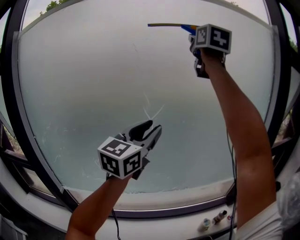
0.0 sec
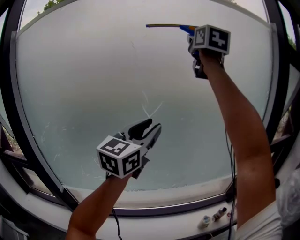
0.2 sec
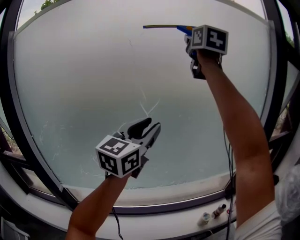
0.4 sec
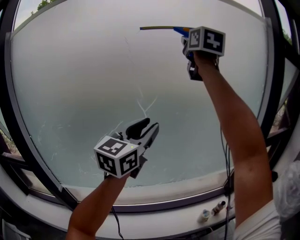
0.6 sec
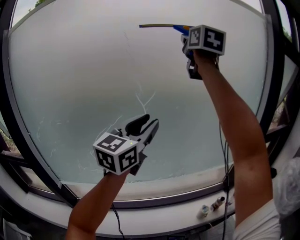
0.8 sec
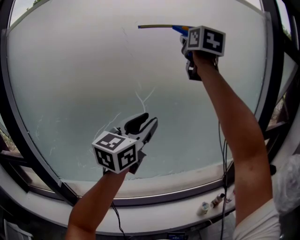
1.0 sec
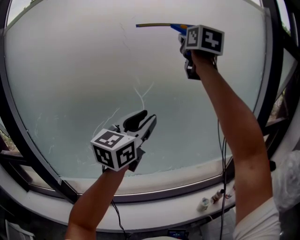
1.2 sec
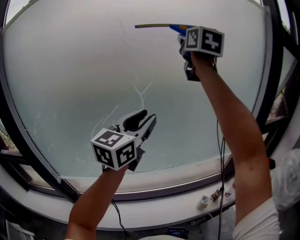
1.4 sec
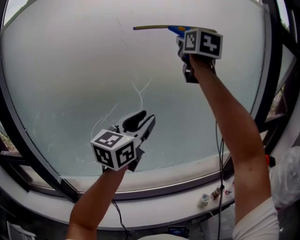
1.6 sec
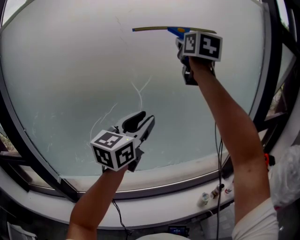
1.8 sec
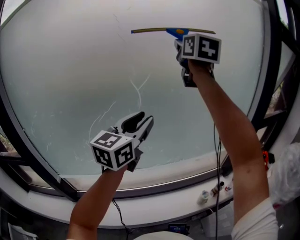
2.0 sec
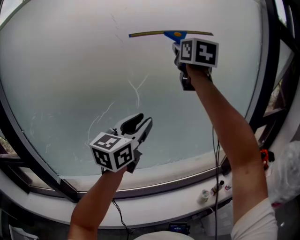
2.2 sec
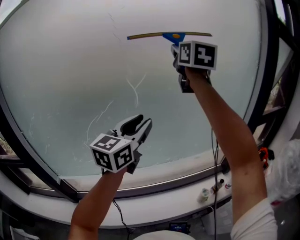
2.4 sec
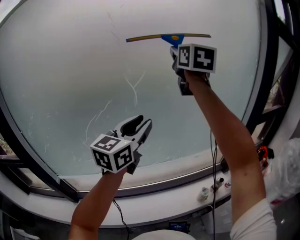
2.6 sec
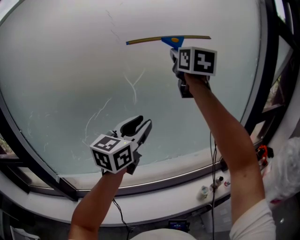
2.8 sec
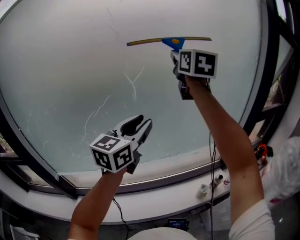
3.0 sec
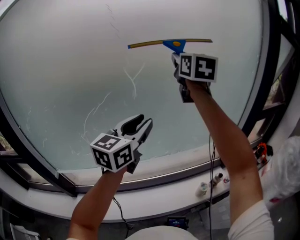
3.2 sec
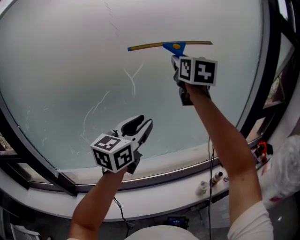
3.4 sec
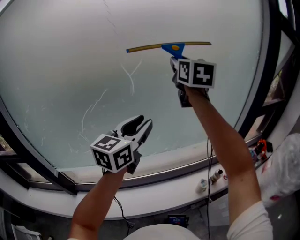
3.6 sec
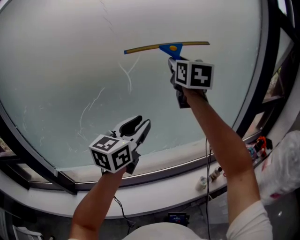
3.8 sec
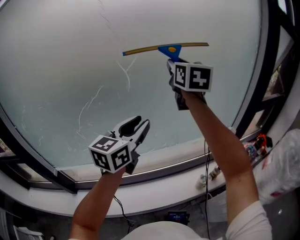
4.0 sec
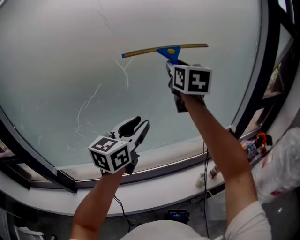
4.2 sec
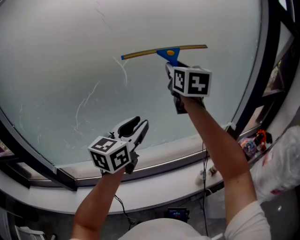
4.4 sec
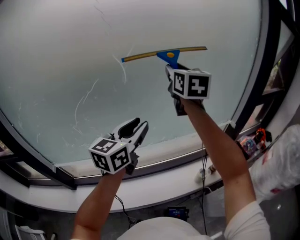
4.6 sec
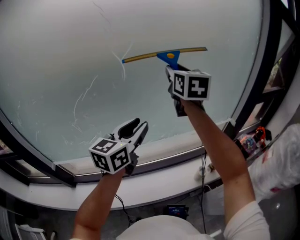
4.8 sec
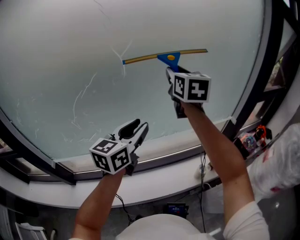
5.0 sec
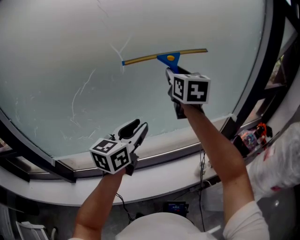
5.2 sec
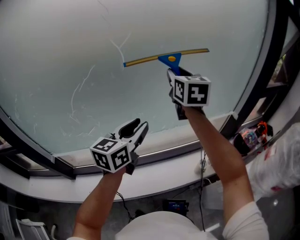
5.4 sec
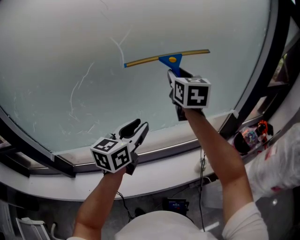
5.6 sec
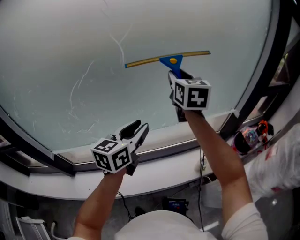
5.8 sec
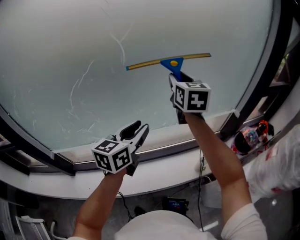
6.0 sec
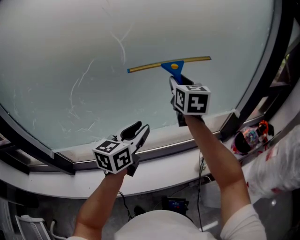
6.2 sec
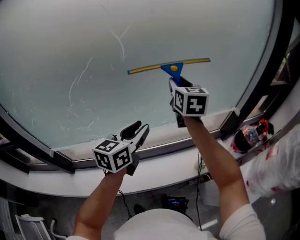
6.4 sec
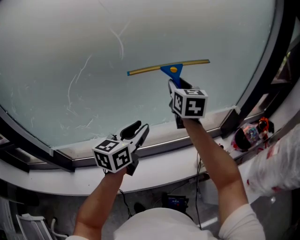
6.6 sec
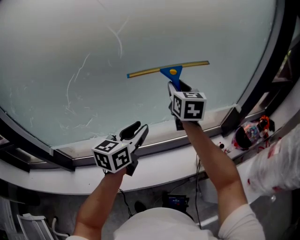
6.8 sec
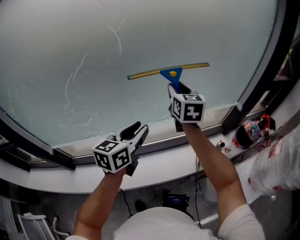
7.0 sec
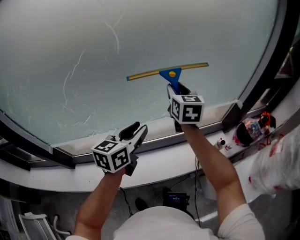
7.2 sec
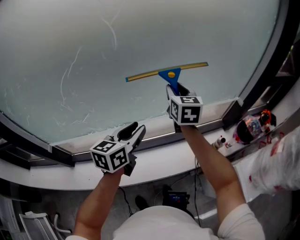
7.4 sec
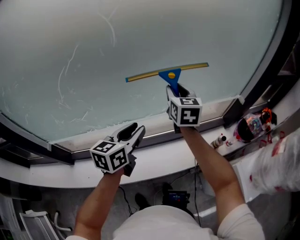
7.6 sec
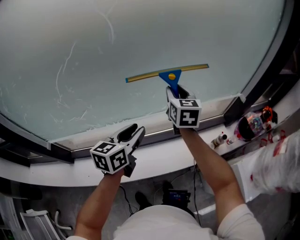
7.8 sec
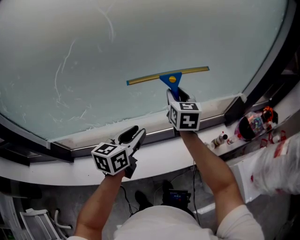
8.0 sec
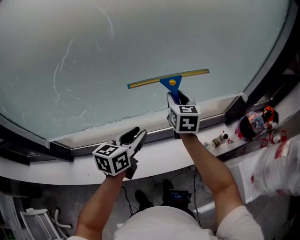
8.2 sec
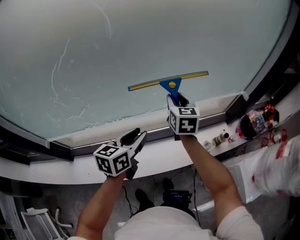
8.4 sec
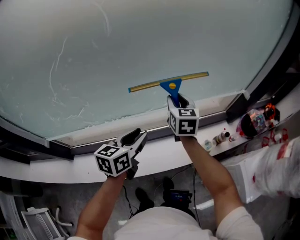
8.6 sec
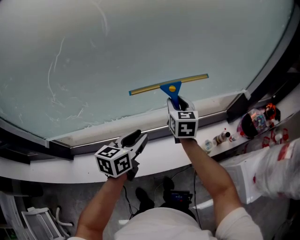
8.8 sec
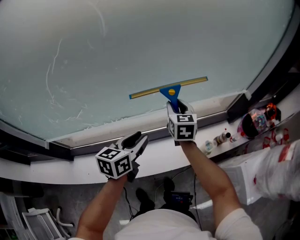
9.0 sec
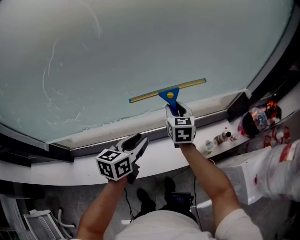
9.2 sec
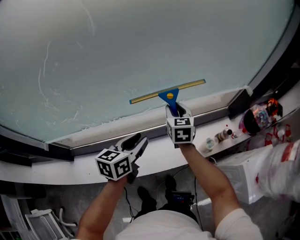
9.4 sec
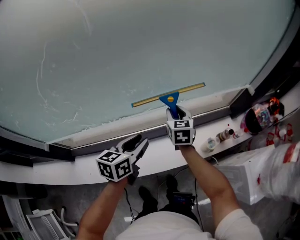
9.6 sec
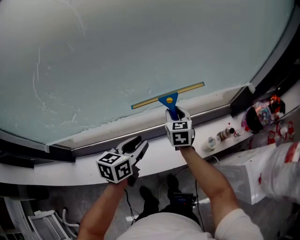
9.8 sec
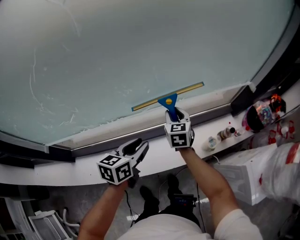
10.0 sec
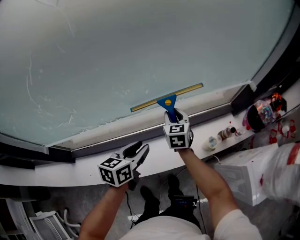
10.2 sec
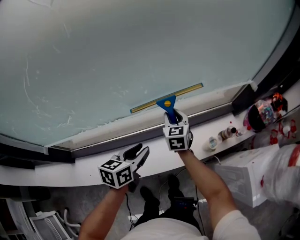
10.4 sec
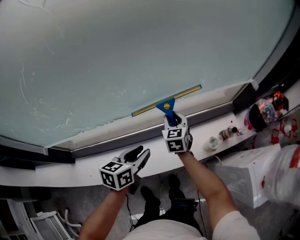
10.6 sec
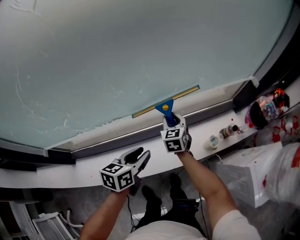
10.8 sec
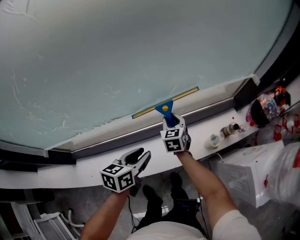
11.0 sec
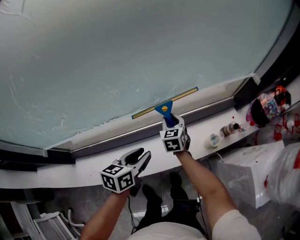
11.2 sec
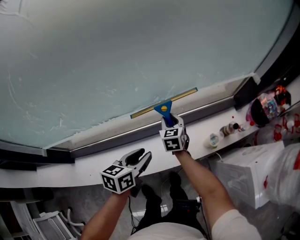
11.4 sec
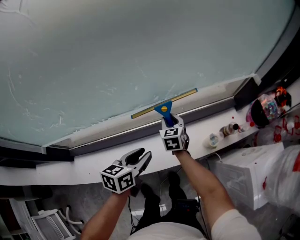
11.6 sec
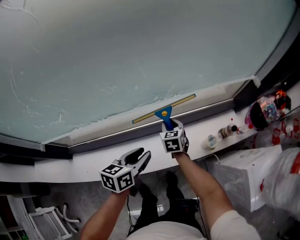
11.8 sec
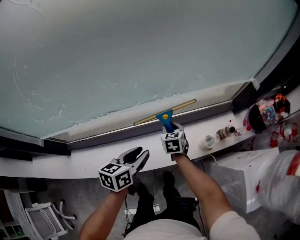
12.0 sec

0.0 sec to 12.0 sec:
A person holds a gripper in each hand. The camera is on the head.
0.0 sec to 1.6 sec: The left gripper moves downward, approximately 5 cm. The right gripper heads downward, covering approximately 15 cm.
1.6 sec to 3.0 sec: The left gripper moves downward, about 5 cm; the right gripper heads downward, covering approximately 10 cm.
3.0 sec to 4.4 sec: The right gripper is displaced downward by about 15 cm. Meanwhile the left gripper travels downward by some 5 cm.
4.4 sec to 6.0 sec: The grippers both shift downward by roughly 10 cm.
6.0 sec to 7.6 sec: The left gripper travels downward by some 10 cm. The right gripper goes approximately 15 cm downward.
7.6 sec to 9.0 sec: The left gripper travels downward by approximately 10 cm, while the right gripper is displaced downward by approximately 15 cm.
9.0 sec to 10.4 sec: The right gripper is displaced downward by about 10 cm. The left gripper is displaced downward by approximately 10 cm.
10.4 sec to 12.0 sec: The left gripper changes place by roughly 5 cm. The right gripper shifts roughly 10 cm downward.

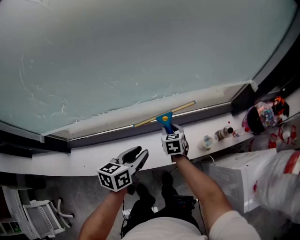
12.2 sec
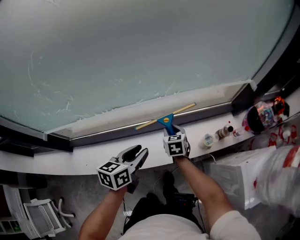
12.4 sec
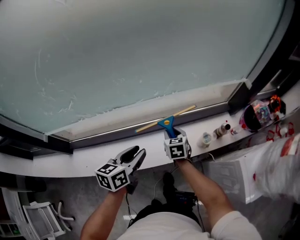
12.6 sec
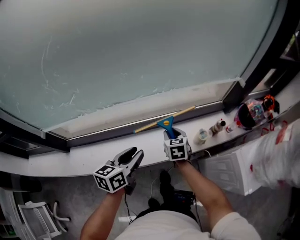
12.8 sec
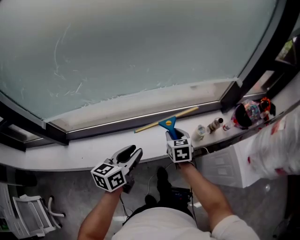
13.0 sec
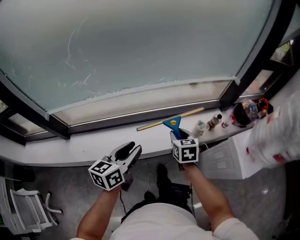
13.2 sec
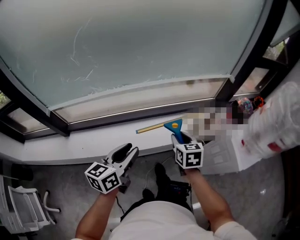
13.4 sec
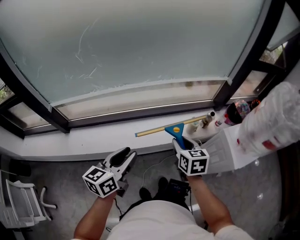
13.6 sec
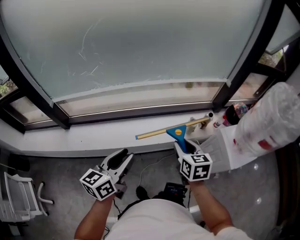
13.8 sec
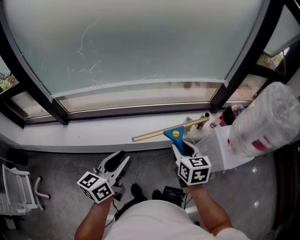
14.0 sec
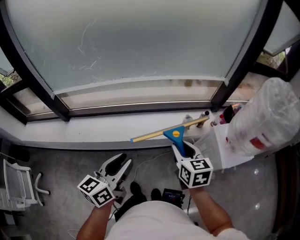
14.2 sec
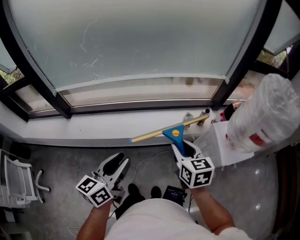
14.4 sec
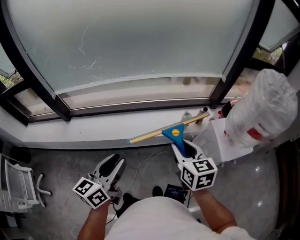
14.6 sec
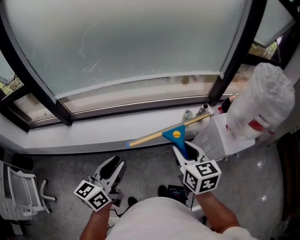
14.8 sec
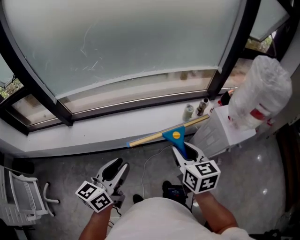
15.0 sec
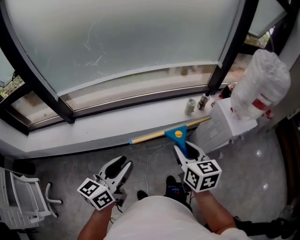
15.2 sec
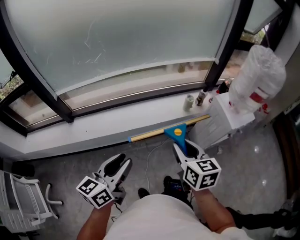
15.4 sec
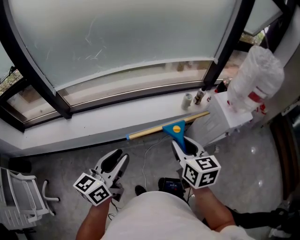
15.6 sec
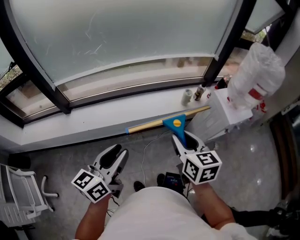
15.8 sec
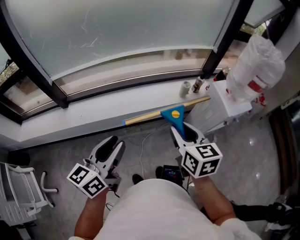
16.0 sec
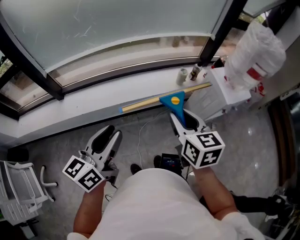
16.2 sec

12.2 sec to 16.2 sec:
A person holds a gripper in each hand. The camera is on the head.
12.2 sec to 13.6 sec: Both grippers travel together backward and upward, some 35 cm.
13.6 sec to 14.8 sec: The left gripper shifts about 15 cm backward, while the right gripper moves backward and upward, approximately 20 cm.
14.8 sec to 16.2 sec: The two grippers go roughly 10 cm backward and to the left.

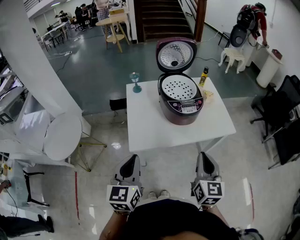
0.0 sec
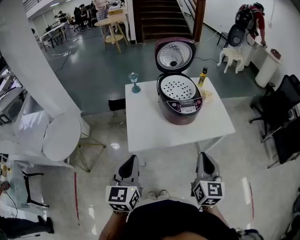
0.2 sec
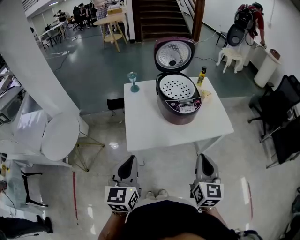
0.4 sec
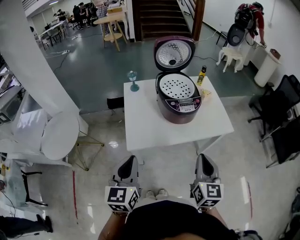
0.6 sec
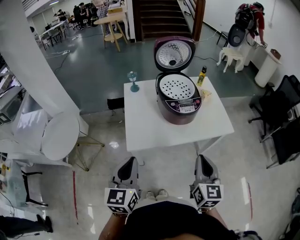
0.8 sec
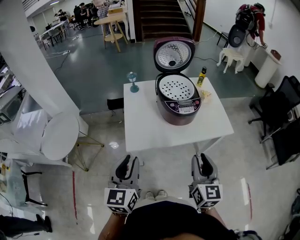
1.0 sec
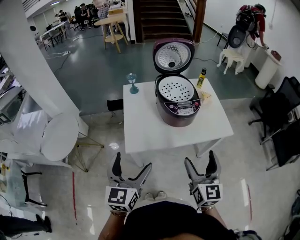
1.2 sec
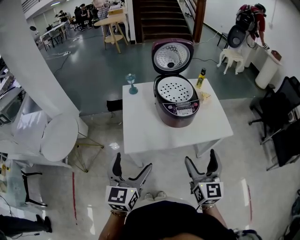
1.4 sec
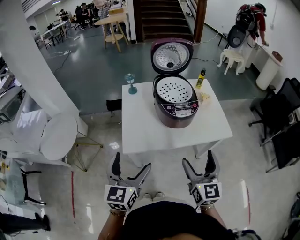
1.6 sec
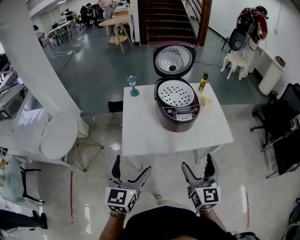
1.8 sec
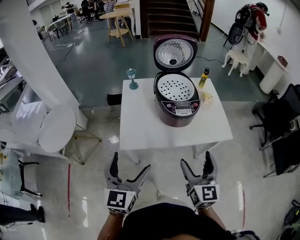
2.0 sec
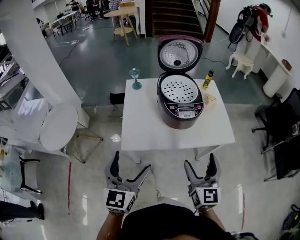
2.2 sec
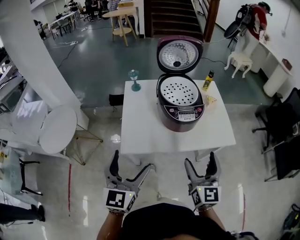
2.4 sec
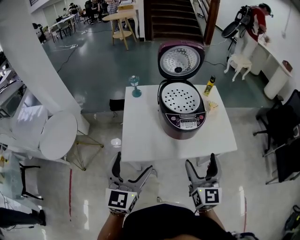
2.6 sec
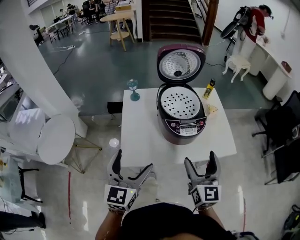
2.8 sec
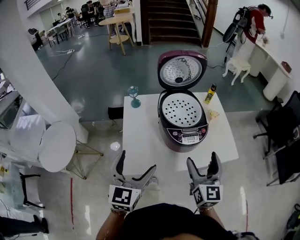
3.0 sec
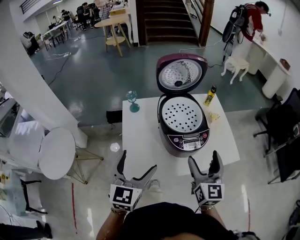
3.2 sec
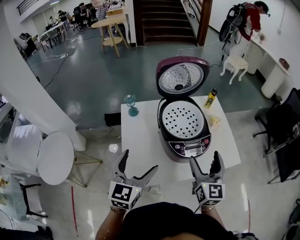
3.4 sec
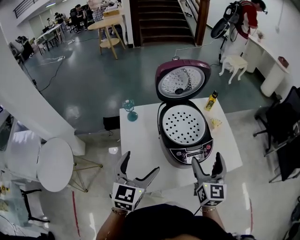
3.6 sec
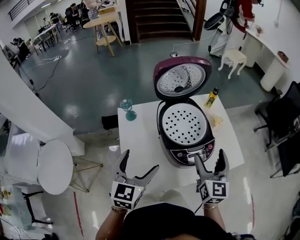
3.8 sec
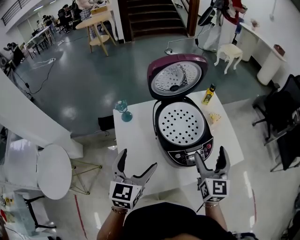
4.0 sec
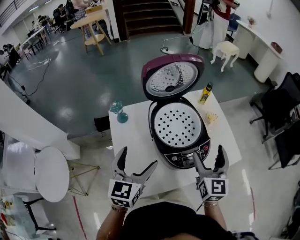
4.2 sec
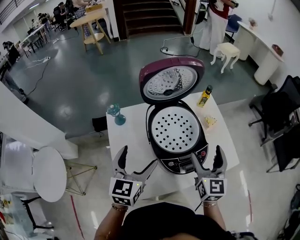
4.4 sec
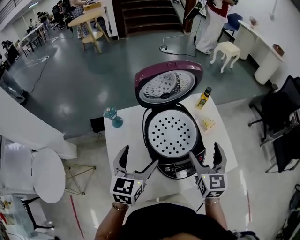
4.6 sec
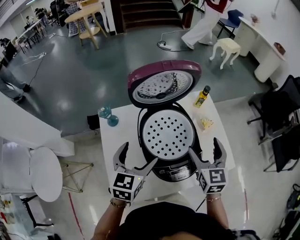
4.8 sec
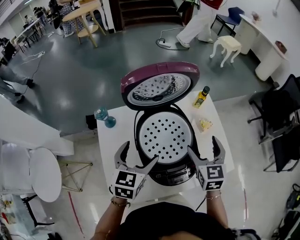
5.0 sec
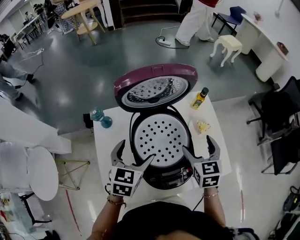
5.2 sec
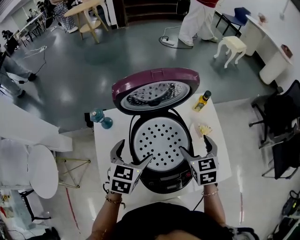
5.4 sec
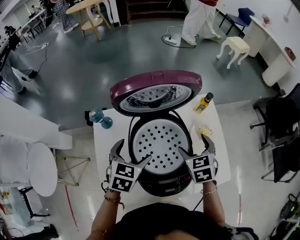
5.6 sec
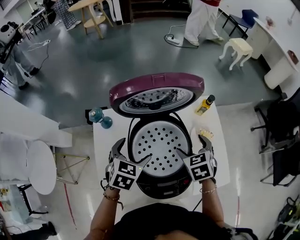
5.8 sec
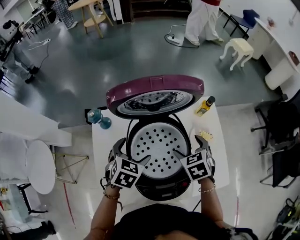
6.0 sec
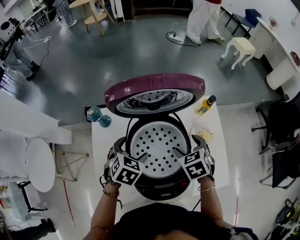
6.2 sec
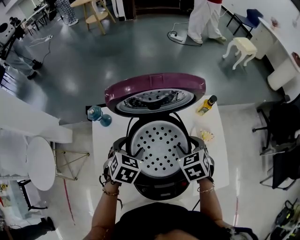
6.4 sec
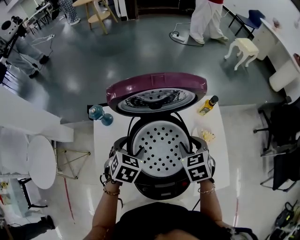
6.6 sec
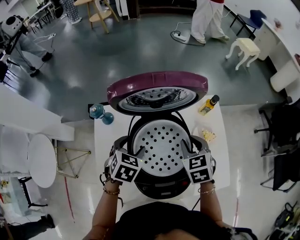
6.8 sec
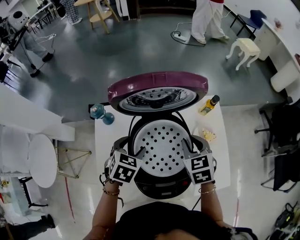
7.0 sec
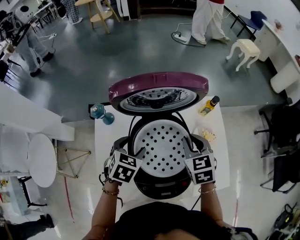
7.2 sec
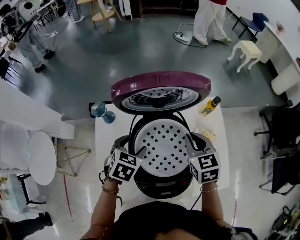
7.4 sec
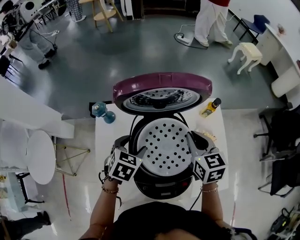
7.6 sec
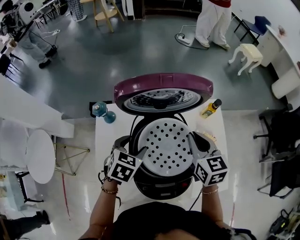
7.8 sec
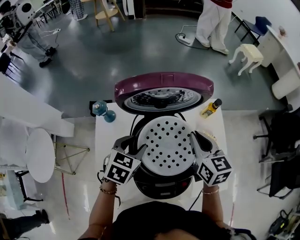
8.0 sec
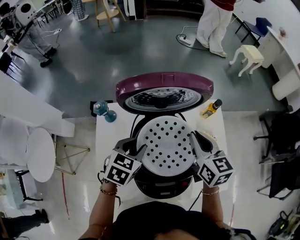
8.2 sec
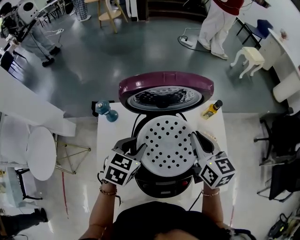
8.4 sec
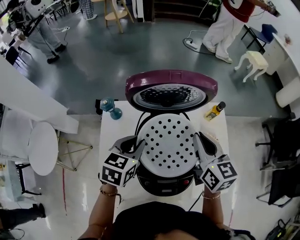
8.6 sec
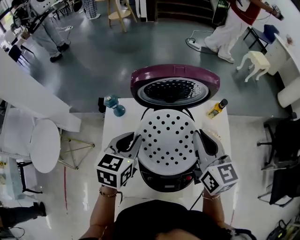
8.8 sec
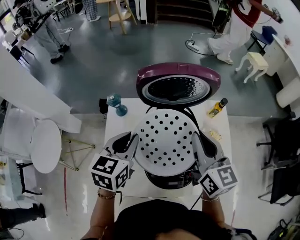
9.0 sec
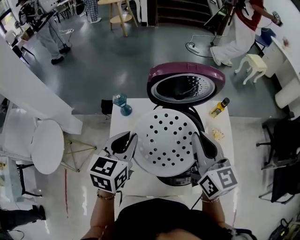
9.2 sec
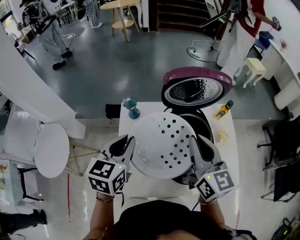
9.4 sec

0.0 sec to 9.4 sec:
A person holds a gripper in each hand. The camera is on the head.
0.0 sec to 1.6 sec: The right gripper opens its fingers; the left gripper opens its fingers.
1.6 sec to 3.2 sec: The grippers both shift forward by approximately 20 cm.
3.2 sec to 4.8 sec: The two grippers go roughly 20 cm forward.
4.8 sec to 6.2 sec: The left gripper travels forward and downward by some 15 cm, and rotates approximately 30 degrees; the right gripper moves downward and forward, roughly 15 cm, and tilts its fingers approximately 40 degrees downward.
6.2 sec to 7.8 sec: The right gripper moves upward, roughly 10 cm, turns by roughly 30 degrees, and closes. Meanwhile the left gripper closes its fingers.
7.8 sec to 9.4 sec: The left gripper moves upward, to the left and backward, some 20 cm, turns by about 30 degrees, and closes; the right gripper shifts some 20 cm to the left, upward and backward, and turns by roughly 20 degrees.
